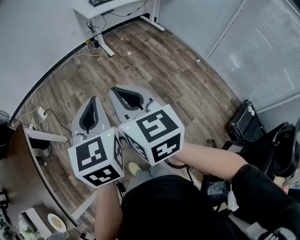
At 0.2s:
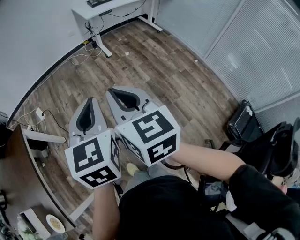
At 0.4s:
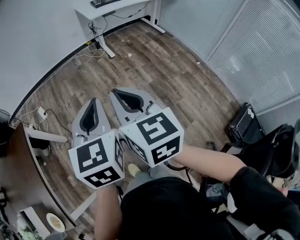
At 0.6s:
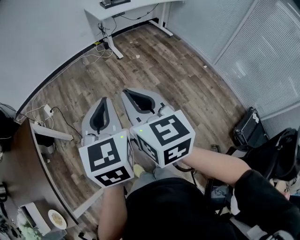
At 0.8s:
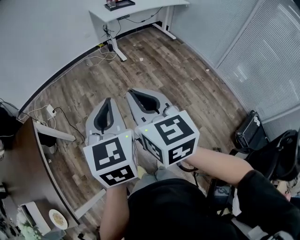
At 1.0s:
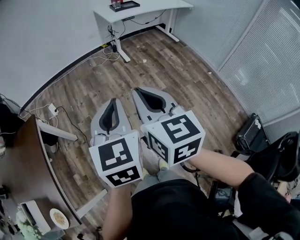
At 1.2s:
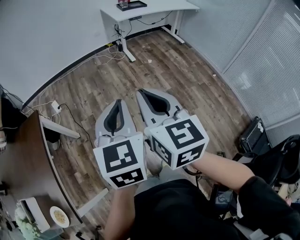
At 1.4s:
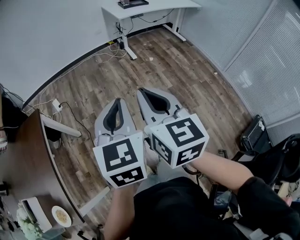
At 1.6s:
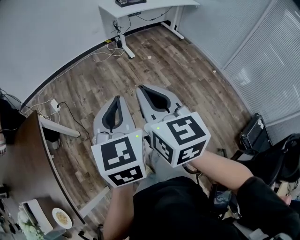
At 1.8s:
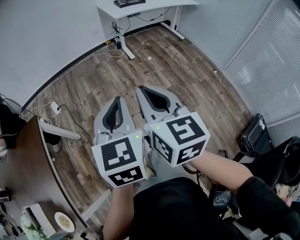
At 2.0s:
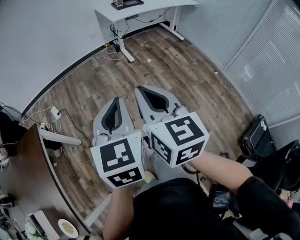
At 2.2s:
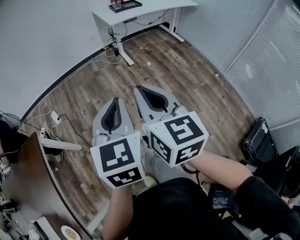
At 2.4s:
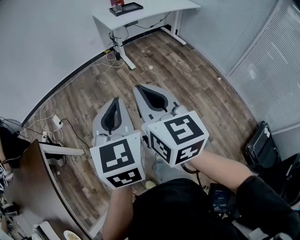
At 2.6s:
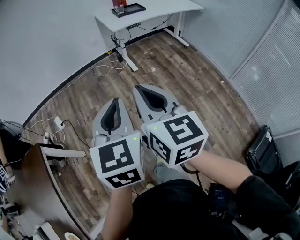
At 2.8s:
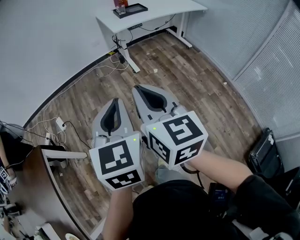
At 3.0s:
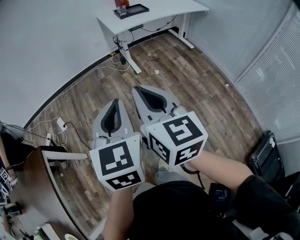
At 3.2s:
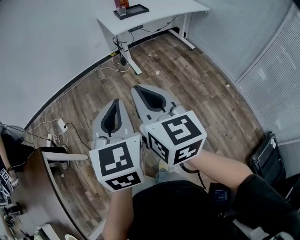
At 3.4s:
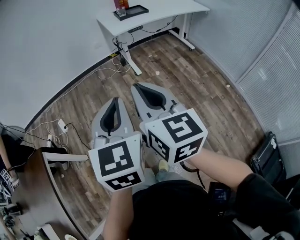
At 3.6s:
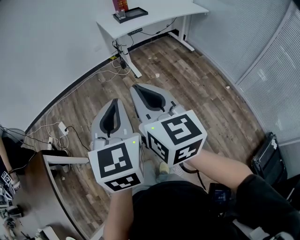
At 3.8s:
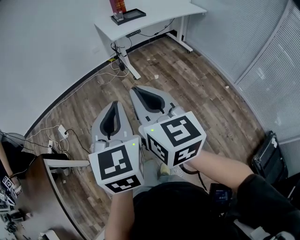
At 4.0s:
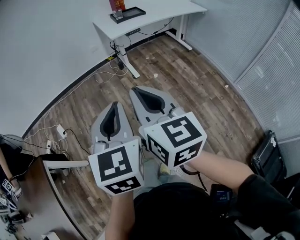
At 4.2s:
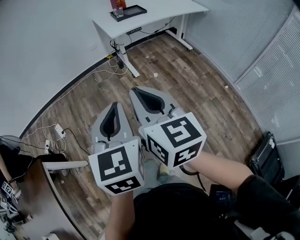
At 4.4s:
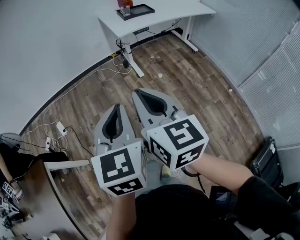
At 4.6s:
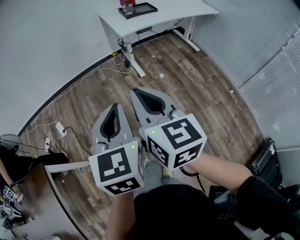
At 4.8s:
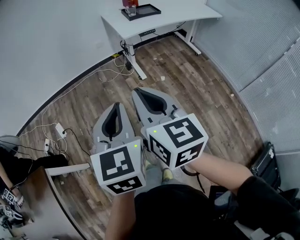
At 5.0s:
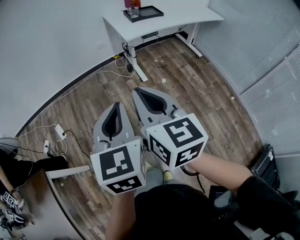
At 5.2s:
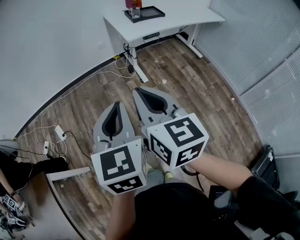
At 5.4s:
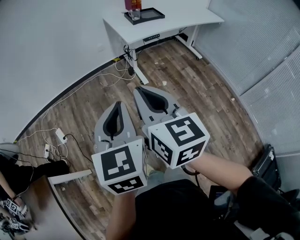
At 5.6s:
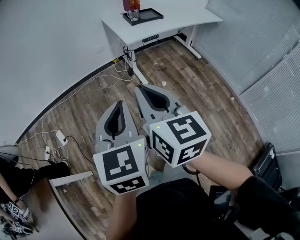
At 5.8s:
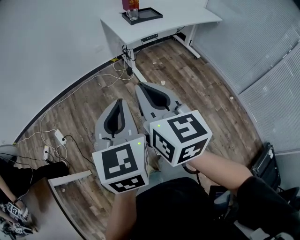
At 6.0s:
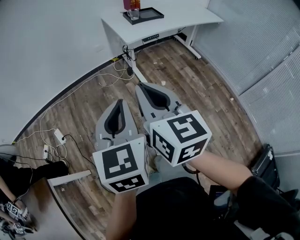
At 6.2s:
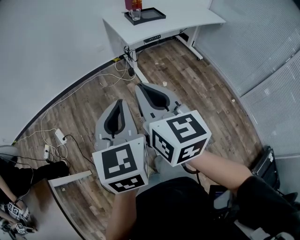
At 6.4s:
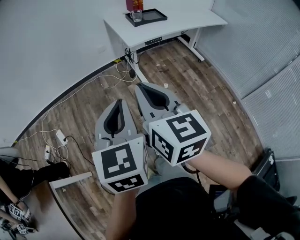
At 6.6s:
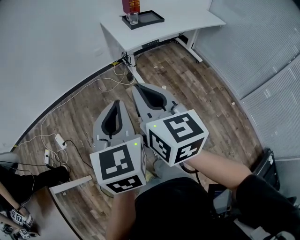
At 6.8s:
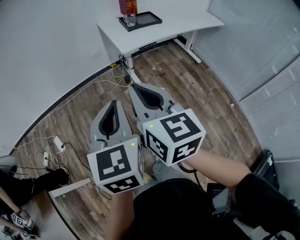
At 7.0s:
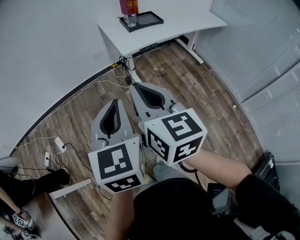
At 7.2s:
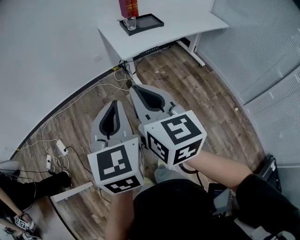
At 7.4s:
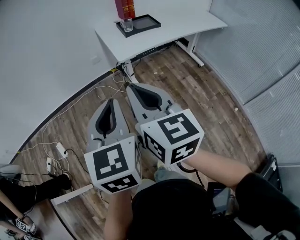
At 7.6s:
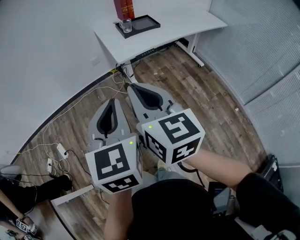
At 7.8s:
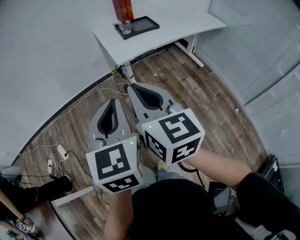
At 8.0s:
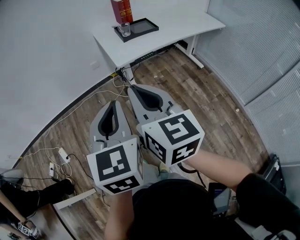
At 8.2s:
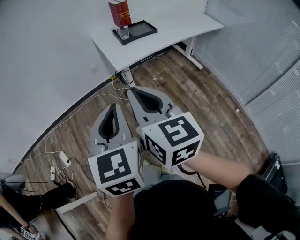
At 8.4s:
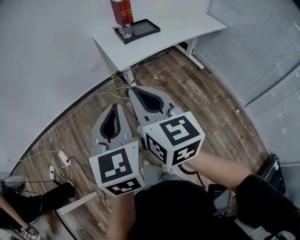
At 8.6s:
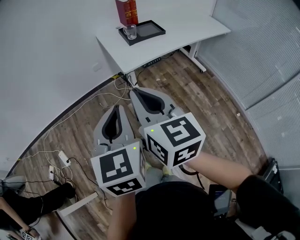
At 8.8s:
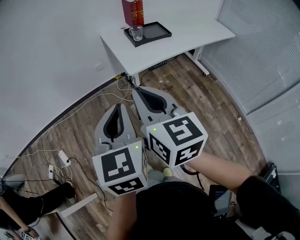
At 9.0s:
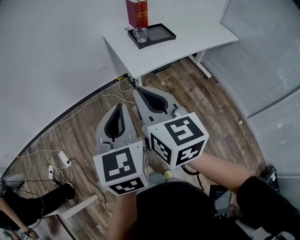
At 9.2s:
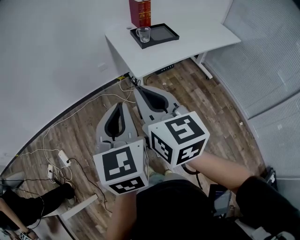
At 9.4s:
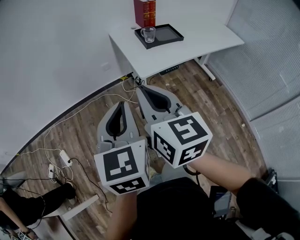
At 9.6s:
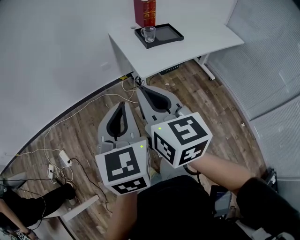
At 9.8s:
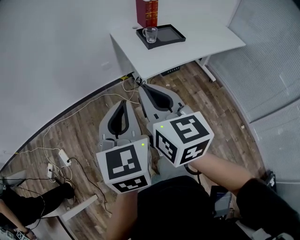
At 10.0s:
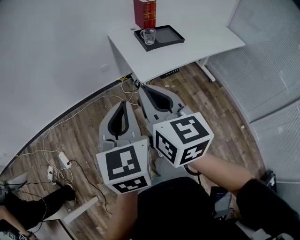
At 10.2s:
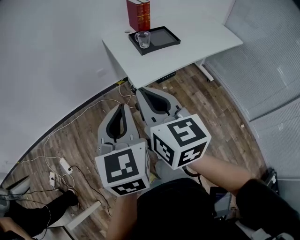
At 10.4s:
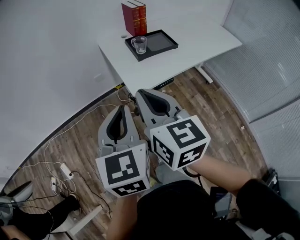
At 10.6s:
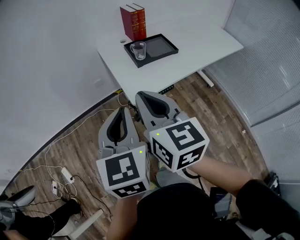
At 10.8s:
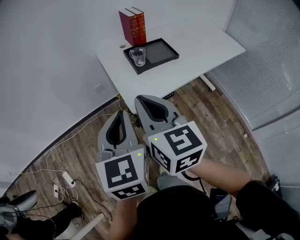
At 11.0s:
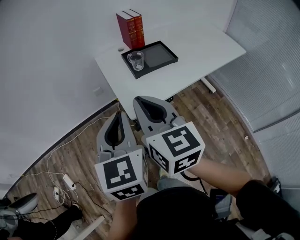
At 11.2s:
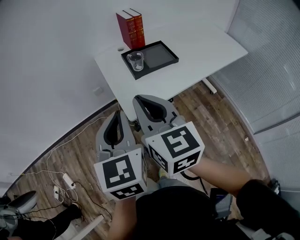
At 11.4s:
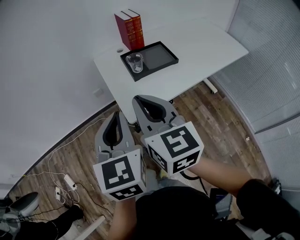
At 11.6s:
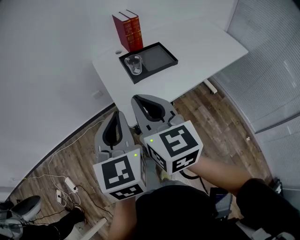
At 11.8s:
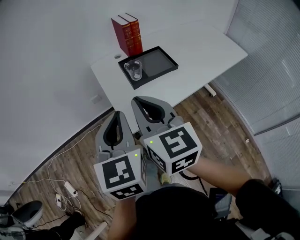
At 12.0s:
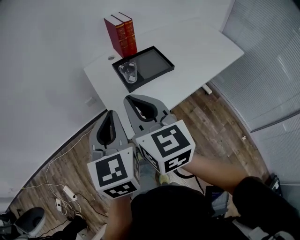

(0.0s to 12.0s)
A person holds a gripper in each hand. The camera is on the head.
0.0s - 1.6s: Both grippers move to the left, some 5 cm.
1.6s - 3.0s: The left gripper shifts about 25 cm forward and to the right. Meanwhile the right gripper goes roughly 25 cm forward.
3.0s - 4.4s: The grippers both shift forward by some 10 cm.
4.4s - 6.0s: Both grippers travel together forward, roughly 15 cm.
6.0s - 7.6s: Both grippers move forward and to the right, approximately 15 cm.
7.6s - 9.0s: Both grippers move forward, approximately 10 cm.
9.0s - 10.4s: The grippers both shift forward by some 10 cm.
10.4s - 12.0s: Both grippers travel together forward, some 20 cm.

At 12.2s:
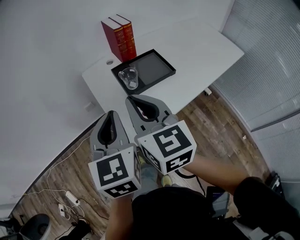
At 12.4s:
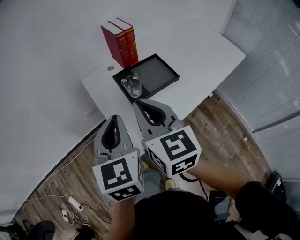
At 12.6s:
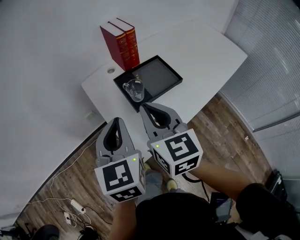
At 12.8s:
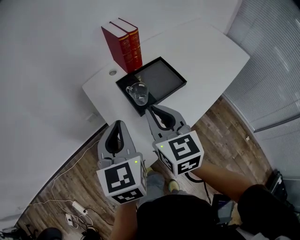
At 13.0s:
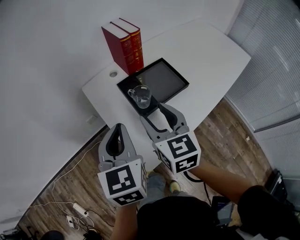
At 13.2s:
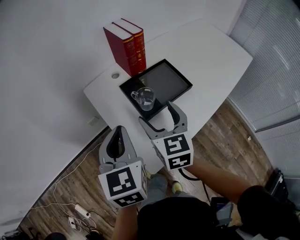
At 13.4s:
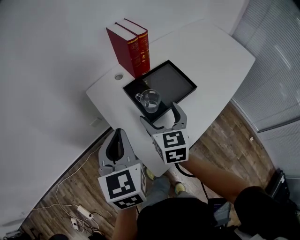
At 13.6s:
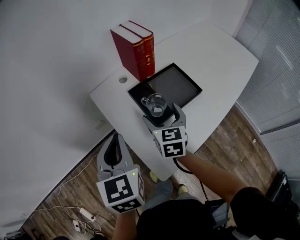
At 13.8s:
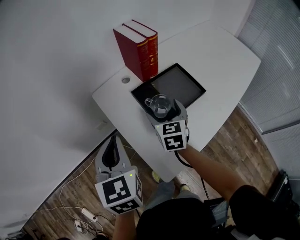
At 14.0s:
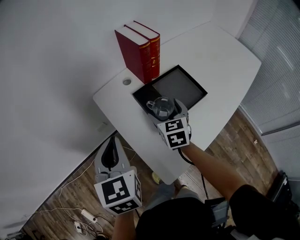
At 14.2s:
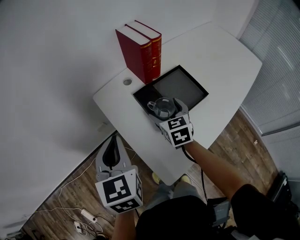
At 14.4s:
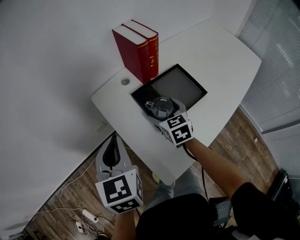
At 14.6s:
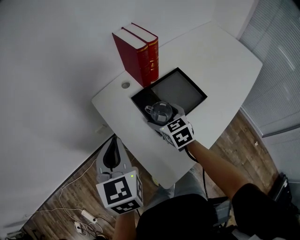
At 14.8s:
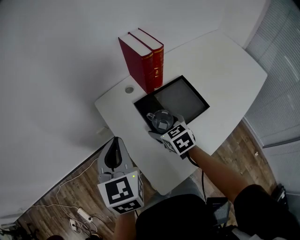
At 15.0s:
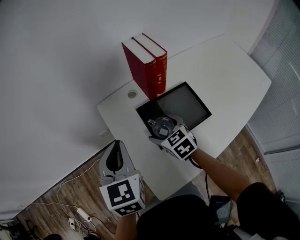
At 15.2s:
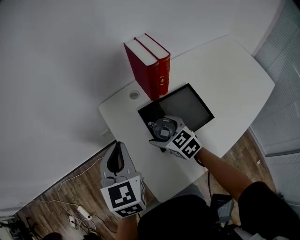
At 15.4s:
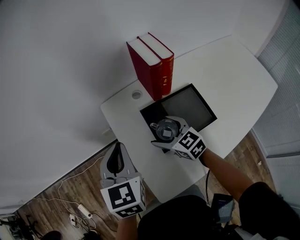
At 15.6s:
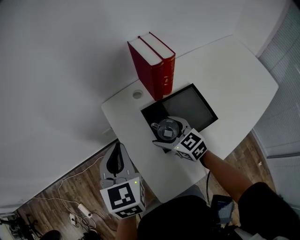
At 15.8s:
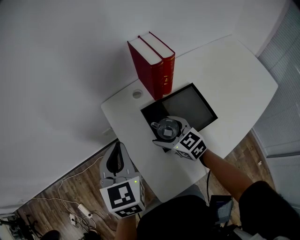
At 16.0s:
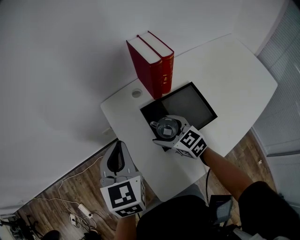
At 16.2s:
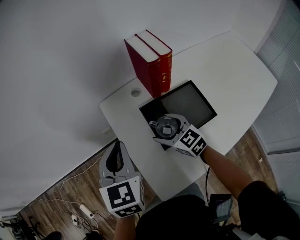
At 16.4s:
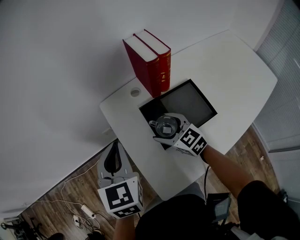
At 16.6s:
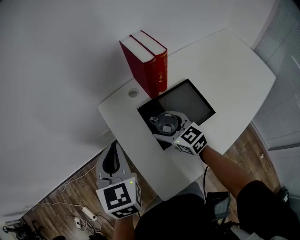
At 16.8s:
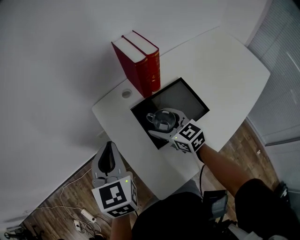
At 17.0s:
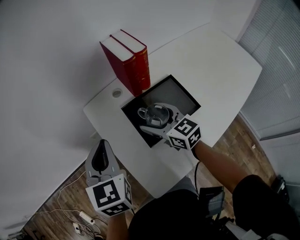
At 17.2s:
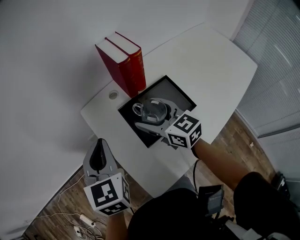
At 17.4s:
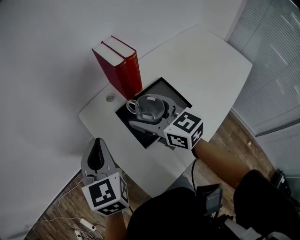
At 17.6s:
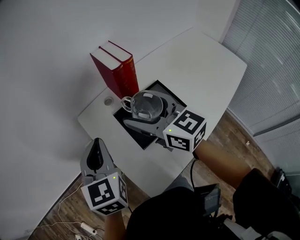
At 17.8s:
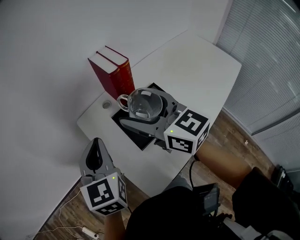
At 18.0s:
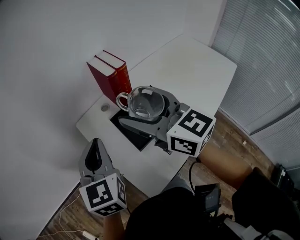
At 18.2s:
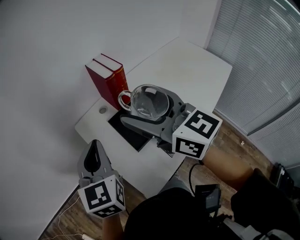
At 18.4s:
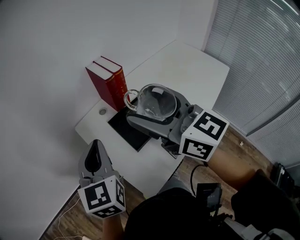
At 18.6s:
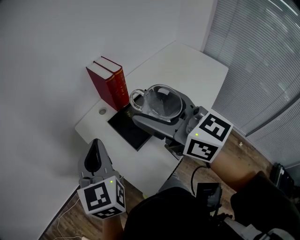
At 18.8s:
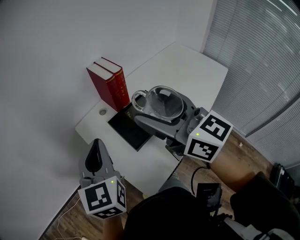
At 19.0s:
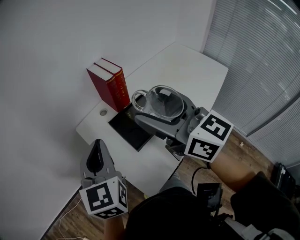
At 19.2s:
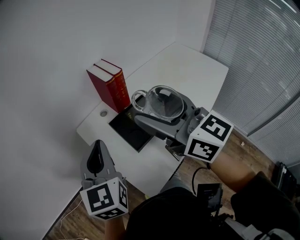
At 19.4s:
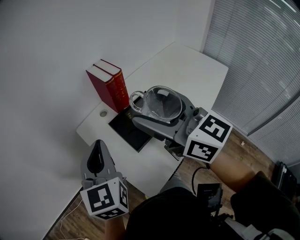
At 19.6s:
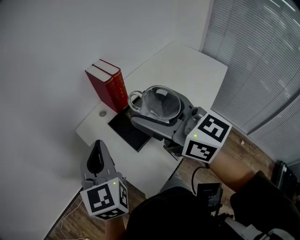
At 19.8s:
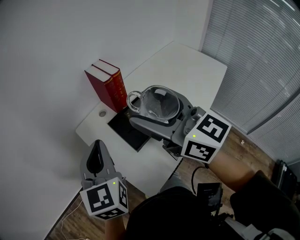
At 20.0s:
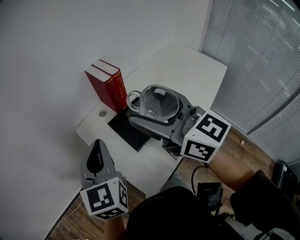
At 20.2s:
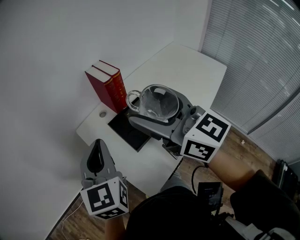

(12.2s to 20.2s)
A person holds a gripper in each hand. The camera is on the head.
12.2s - 13.8s: The right gripper goes roughly 30 cm forward and downward, changes its angle by about 30 degrees, and opens its fingers; the left gripper goes roughly 20 cm forward, to the left and downward.
13.8s - 15.4s: The right gripper rotates some 50 degrees; the left gripper shifts by about 5 cm.
15.4s - 17.0s: The right gripper shifts by about 5 cm.
17.0s - 18.6s: The left gripper goes about 10 cm upward; the right gripper heads upward and backward, covering about 30 cm, and rotates roughly 30 degrees.
18.6s - 20.2s: The grippers stay close to where they were, moving slightly.

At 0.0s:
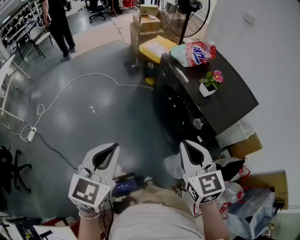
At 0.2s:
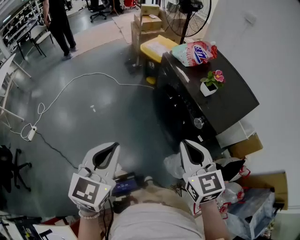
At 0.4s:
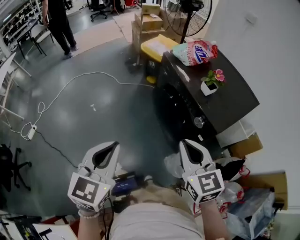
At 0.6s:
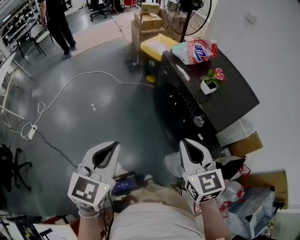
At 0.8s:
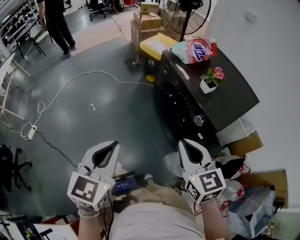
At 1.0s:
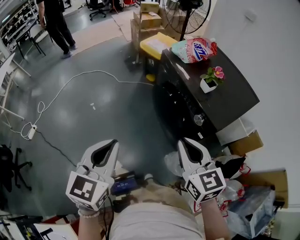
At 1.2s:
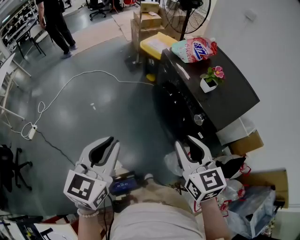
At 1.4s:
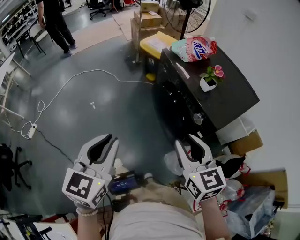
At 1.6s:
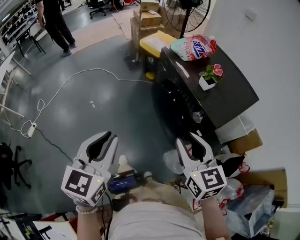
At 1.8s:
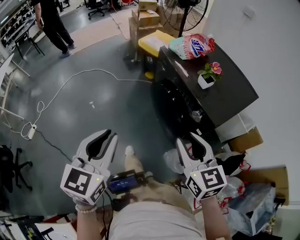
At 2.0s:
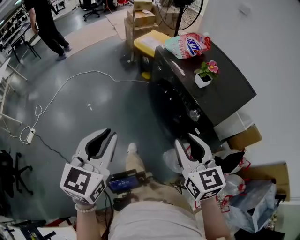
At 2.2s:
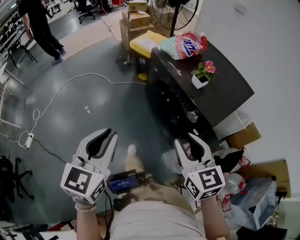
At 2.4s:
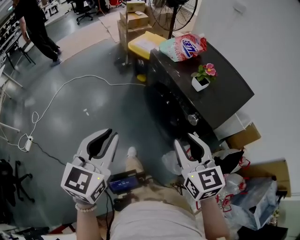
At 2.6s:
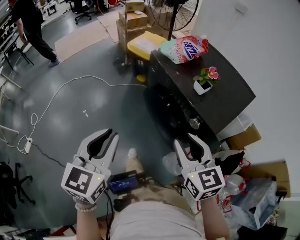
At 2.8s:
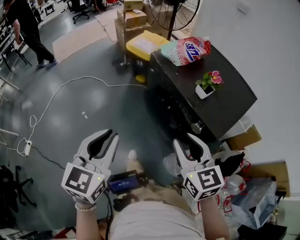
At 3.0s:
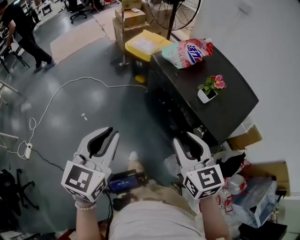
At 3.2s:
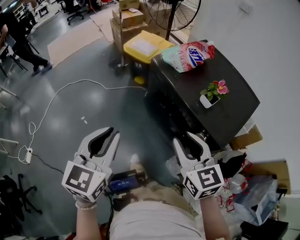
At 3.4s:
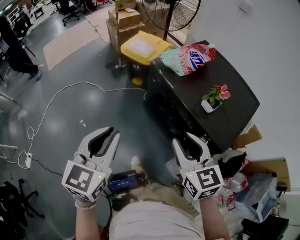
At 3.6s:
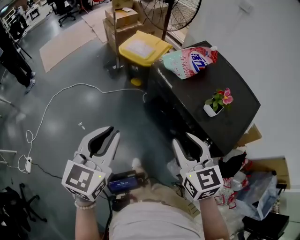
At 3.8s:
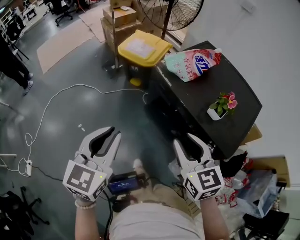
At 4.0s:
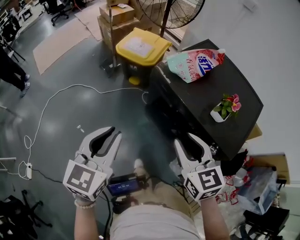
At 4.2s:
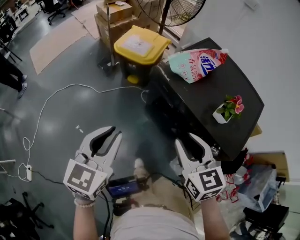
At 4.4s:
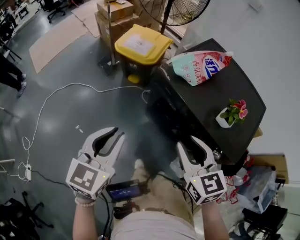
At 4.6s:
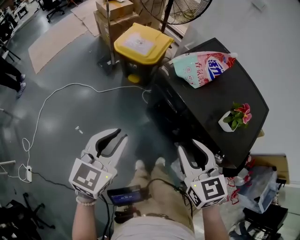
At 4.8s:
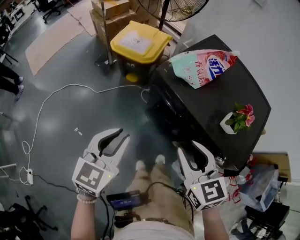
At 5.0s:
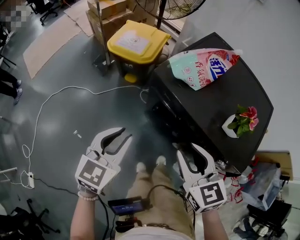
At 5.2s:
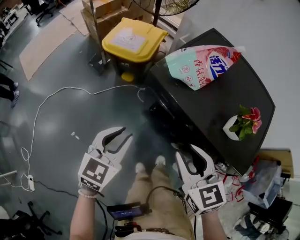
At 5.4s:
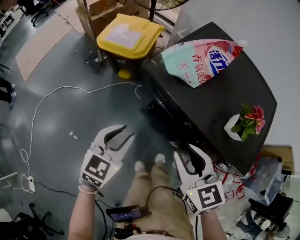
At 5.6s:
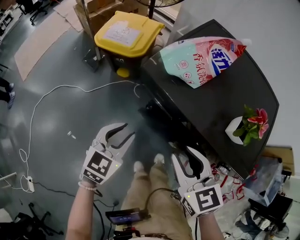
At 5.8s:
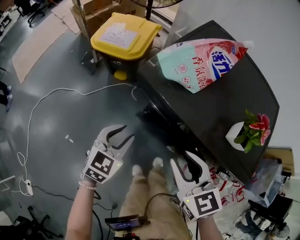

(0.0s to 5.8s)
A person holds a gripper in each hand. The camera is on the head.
0.0s - 1.4s: The right gripper opens.
1.4s - 2.8s: The grippers both shift forward by roughly 10 cm.
2.8s - 4.4s: The right gripper travels forward and to the left by some 20 cm. The left gripper travels forward by some 20 cm.
4.4s - 5.8s: The left gripper goes roughly 25 cm downward and forward, and swivels some 20 degrees; the right gripper moves downward and forward, approximately 15 cm.
